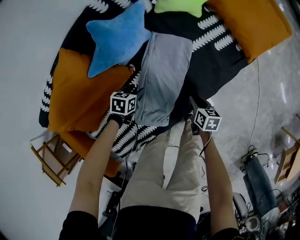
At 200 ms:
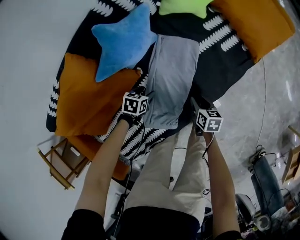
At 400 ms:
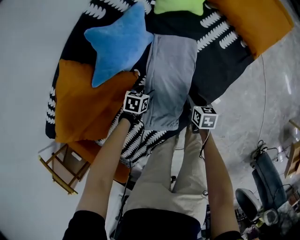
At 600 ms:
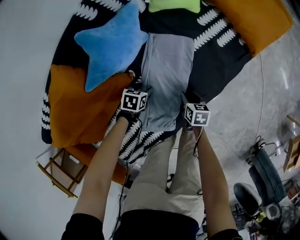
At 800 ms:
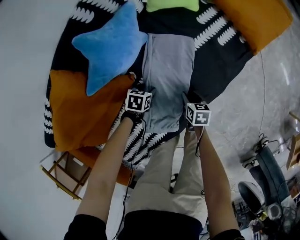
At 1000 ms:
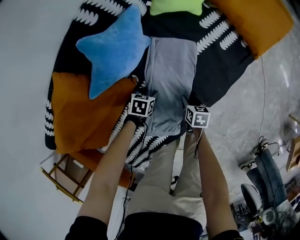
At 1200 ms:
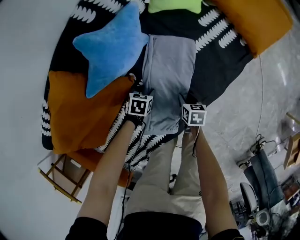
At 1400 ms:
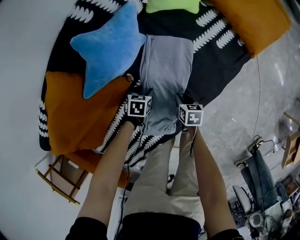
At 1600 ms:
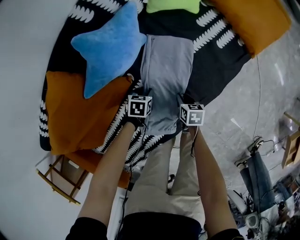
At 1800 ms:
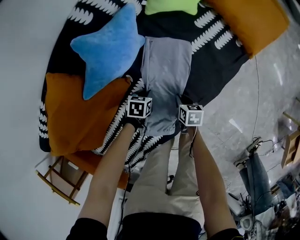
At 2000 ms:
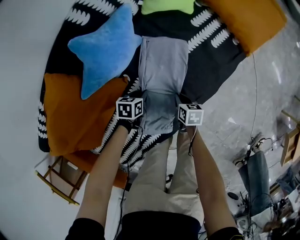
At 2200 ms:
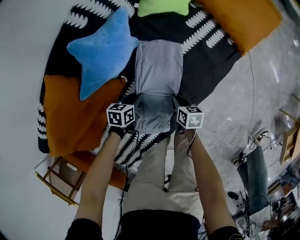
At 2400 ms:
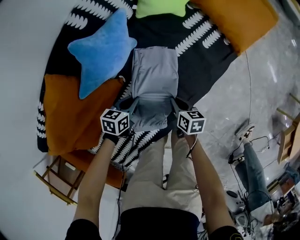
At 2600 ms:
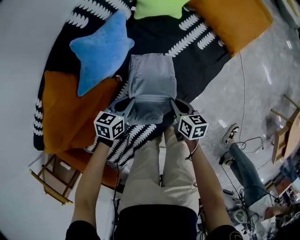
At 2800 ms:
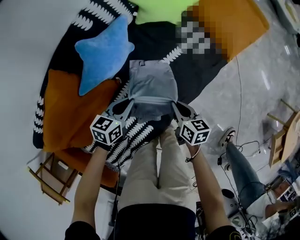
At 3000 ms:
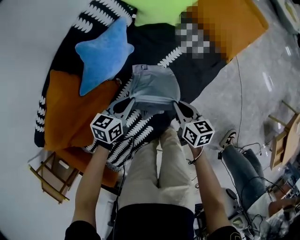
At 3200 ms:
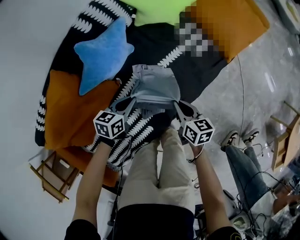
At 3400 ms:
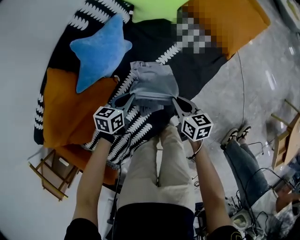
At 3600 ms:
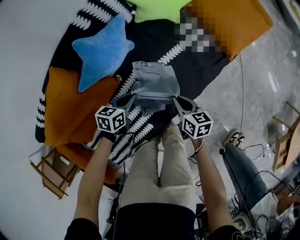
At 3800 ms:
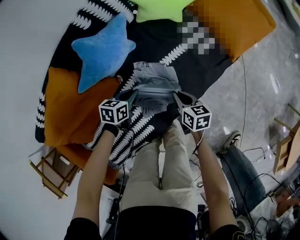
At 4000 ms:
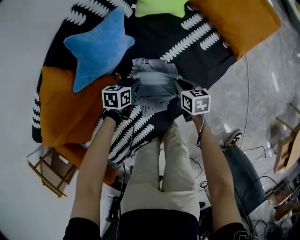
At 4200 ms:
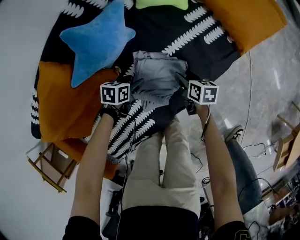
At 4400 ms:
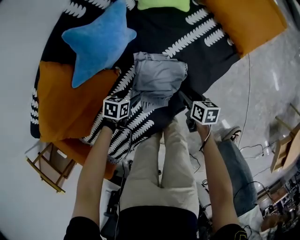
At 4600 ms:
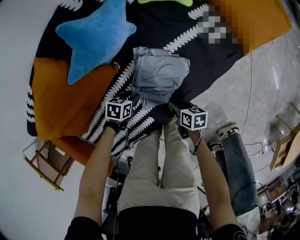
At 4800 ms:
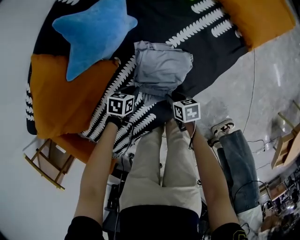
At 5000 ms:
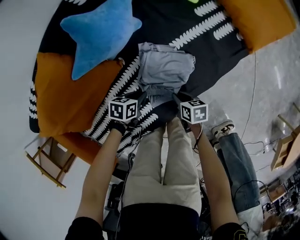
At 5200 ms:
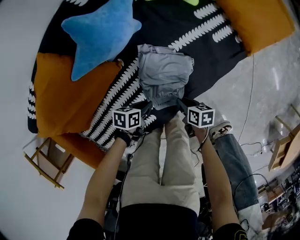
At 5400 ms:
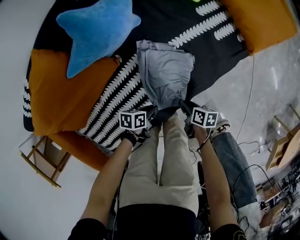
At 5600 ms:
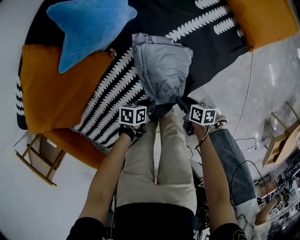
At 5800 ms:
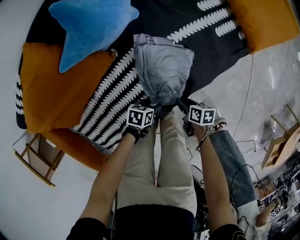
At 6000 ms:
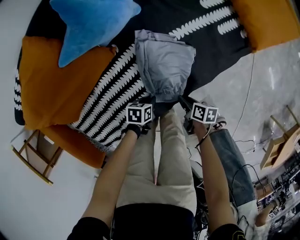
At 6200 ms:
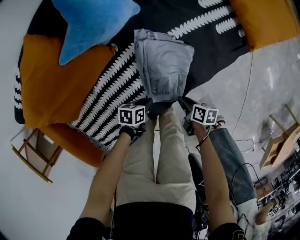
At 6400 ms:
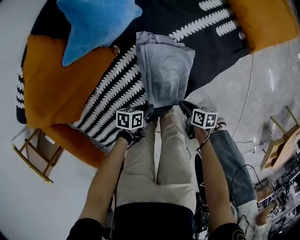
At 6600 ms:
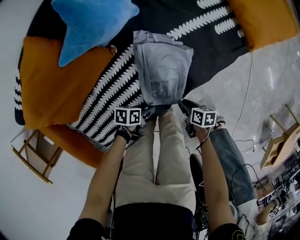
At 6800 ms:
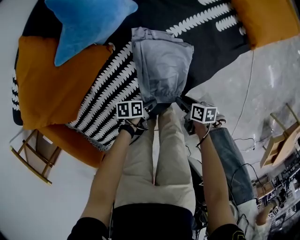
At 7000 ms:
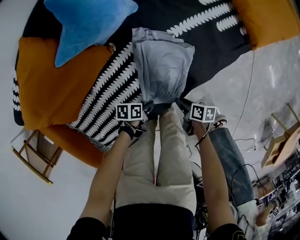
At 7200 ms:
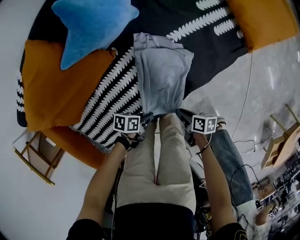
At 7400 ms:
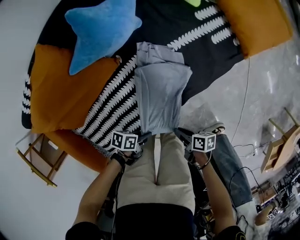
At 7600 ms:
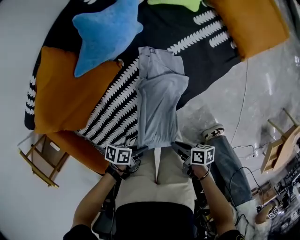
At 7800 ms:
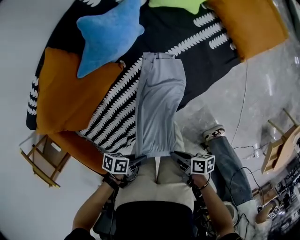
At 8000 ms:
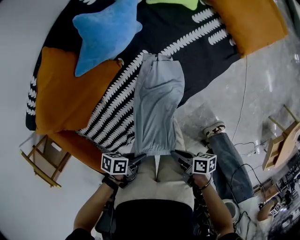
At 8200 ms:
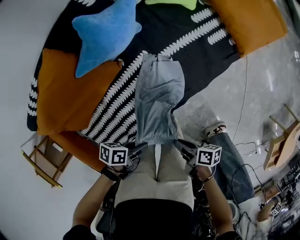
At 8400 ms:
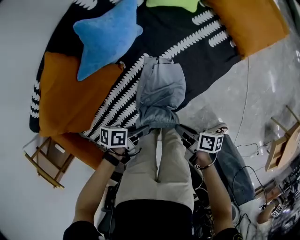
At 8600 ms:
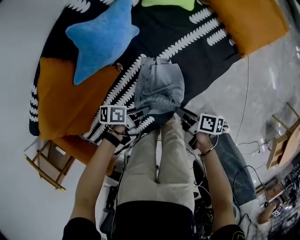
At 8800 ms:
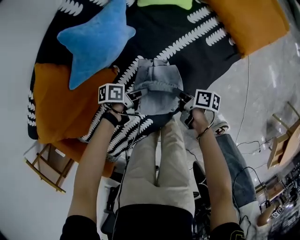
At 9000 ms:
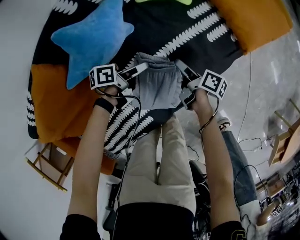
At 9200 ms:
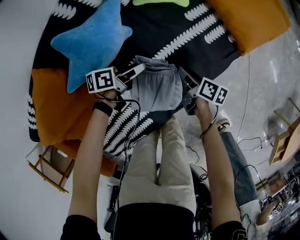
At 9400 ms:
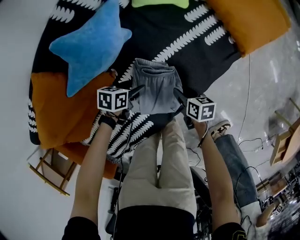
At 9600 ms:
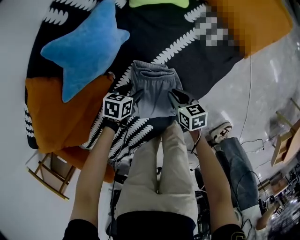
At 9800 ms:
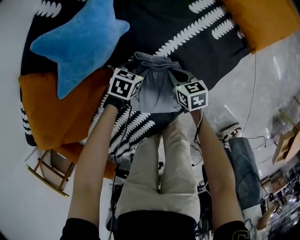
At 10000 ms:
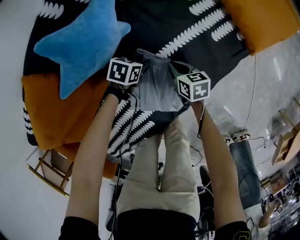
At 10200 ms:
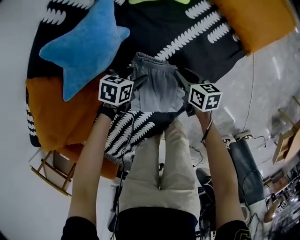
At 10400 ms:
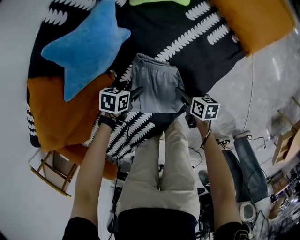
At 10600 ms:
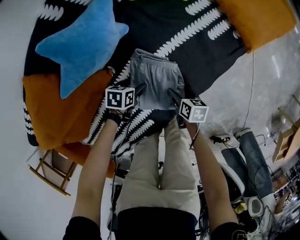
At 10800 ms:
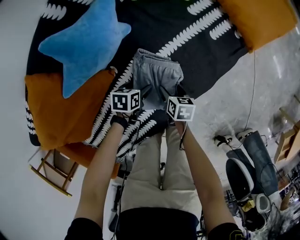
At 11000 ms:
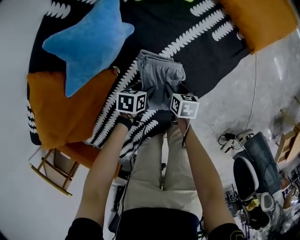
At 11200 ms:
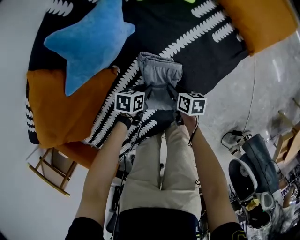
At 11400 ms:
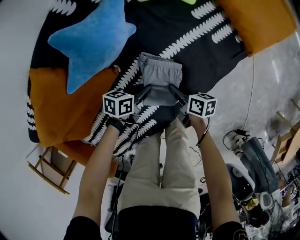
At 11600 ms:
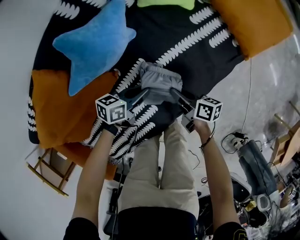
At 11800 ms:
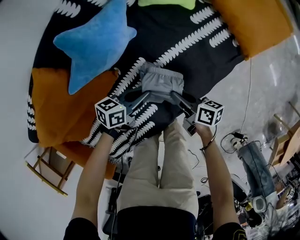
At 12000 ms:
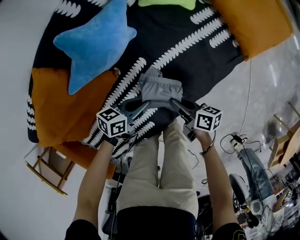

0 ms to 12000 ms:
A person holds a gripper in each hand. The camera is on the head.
0 ms to 1600 ms: The right gripper heads downward and to the left, covering about 10 cm. The left gripper shifts roughly 10 cm downward.
1600 ms to 3000 ms: Both grippers travel together upward, some 25 cm. The left gripper points its fingers some 30 degrees further upward. The right gripper turns by about 20 degrees.
3000 ms to 4400 ms: The grippers both shift downward by approximately 20 cm. The left gripper swivels roughly 30 degrees, and opens up; the right gripper opens up.
4400 ms to 6000 ms: The left gripper changes place by roughly 15 cm, and closes up, while the right gripper moves roughly 15 cm.
6000 ms to 7600 ms: Both grippers travel together upward, some 20 cm. The left gripper turns by roughly 30 degrees, and opens, then closes again, while the right gripper swivels some 20 degrees.
7600 ms to 9000 ms: The left gripper changes place by some 40 cm, turns by roughly 30 degrees, and opens its fingers, while the right gripper moves roughly 40 cm, swivels roughly 40 degrees, and opens up.
9000 ms to 10400 ms: The left gripper ends up about 10 cm from where it was, and points its fingers roughly 30 degrees further downward; the right gripper changes place by some 15 cm, changes its angle by about 40 degrees, and closes and opens again.
10400 ms to 12000 ms: The grippers both shift upward by about 10 cm. The right gripper changes its angle by approximately 30 degrees, and closes its fingers. Meanwhile the left gripper tilts its fingers some 30 degrees upward, and closes.

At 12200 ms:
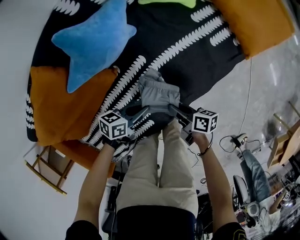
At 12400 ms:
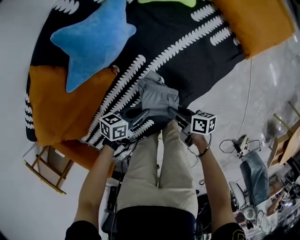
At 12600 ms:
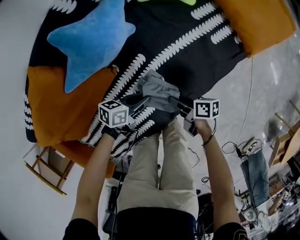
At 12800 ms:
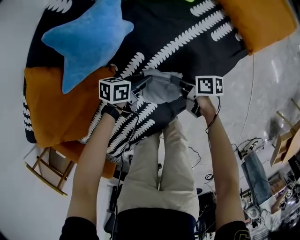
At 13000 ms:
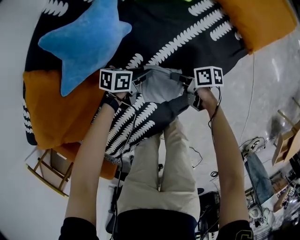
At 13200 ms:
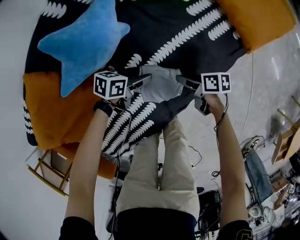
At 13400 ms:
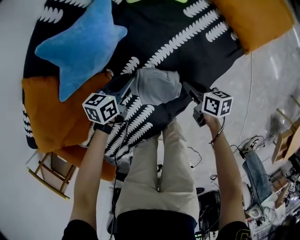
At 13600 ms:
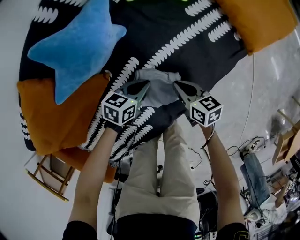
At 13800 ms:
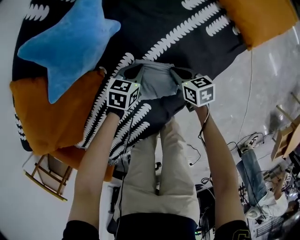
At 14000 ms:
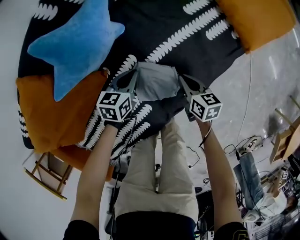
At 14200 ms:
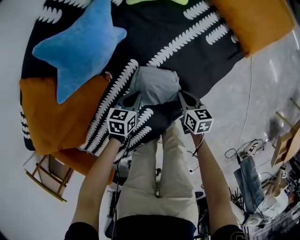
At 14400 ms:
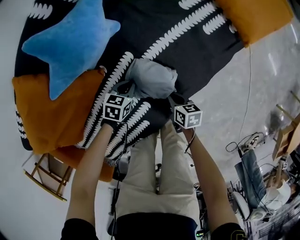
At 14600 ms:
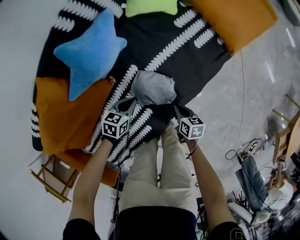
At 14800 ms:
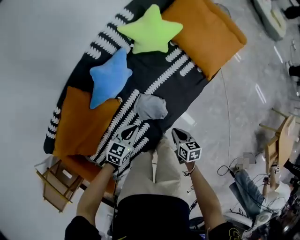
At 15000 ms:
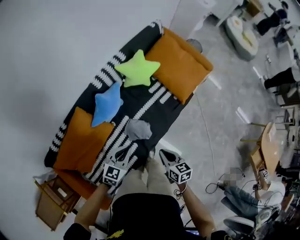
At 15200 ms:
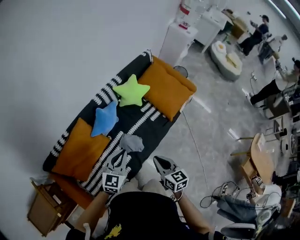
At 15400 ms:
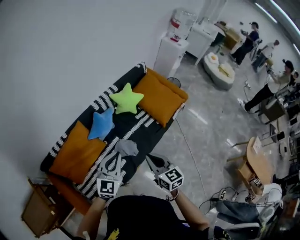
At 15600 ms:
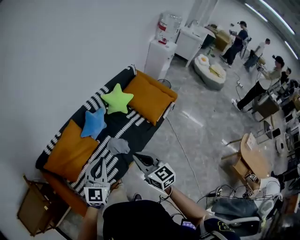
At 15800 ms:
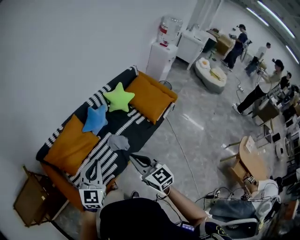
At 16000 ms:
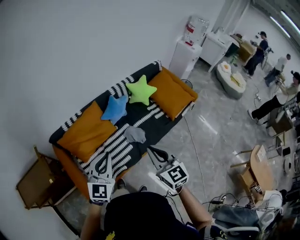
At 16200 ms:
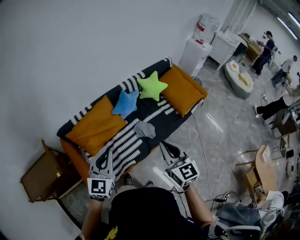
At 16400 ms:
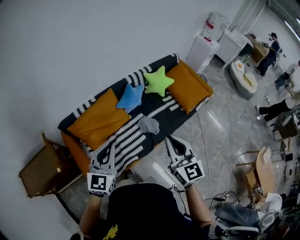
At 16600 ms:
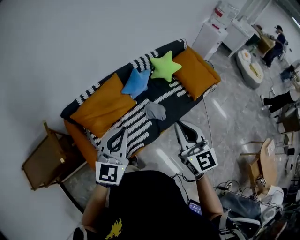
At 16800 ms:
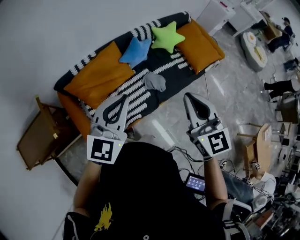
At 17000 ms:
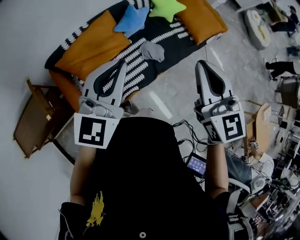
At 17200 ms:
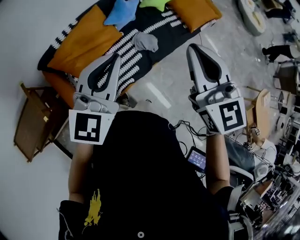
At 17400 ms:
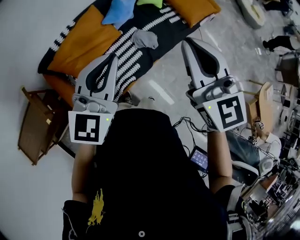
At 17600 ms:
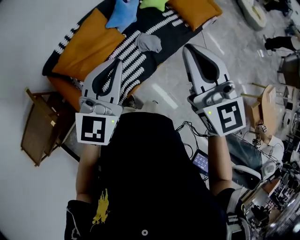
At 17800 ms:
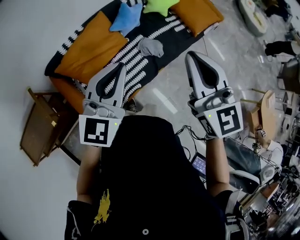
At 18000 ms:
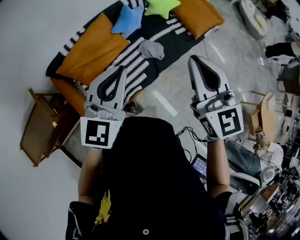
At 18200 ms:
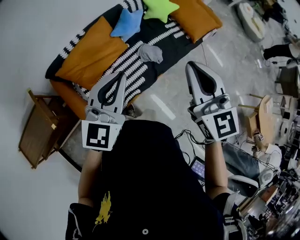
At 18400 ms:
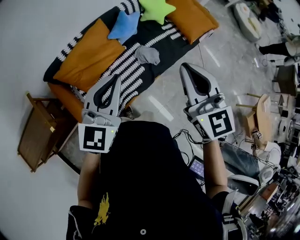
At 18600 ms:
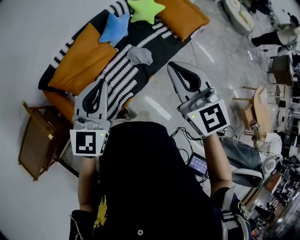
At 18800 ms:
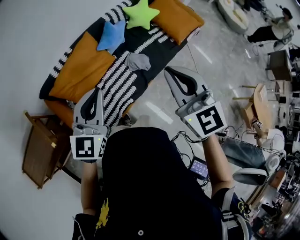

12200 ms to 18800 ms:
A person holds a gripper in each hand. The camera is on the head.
12200 ms to 13800 ms: The left gripper moves up and down over about 10 cm, changing direction 2 times, rotates roughly 30 degrees, and opens, then closes again. The right gripper swings up and down, some 10 cm each way, with 2 reversals, swivels some 40 degrees, and opens, then closes again.
13800 ms to 15400 ms: The right gripper moves up and down over some 80 cm, changing direction 2 times, and turns by roughly 50 degrees; the left gripper goes up and down, some 80 cm each way, reversing 2 times, and angles its fingers upward, by roughly 50 degrees.
15400 ms to 17200 ms: The right gripper moves to the left, upward and backward, approximately 20 cm, and rotates approximately 20 degrees, while the left gripper is displaced to the left and backward by about 20 cm.
17200 ms to 18800 ms: The left gripper shifts approximately 5 cm to the left.

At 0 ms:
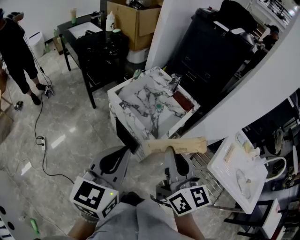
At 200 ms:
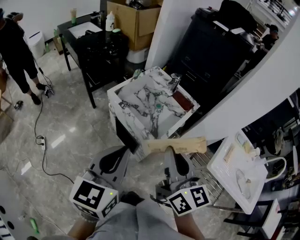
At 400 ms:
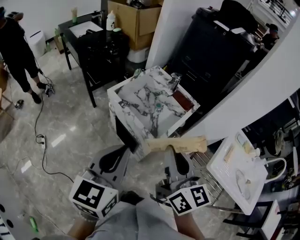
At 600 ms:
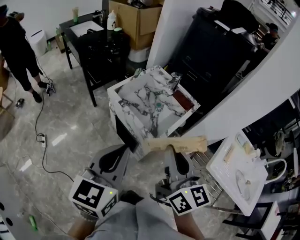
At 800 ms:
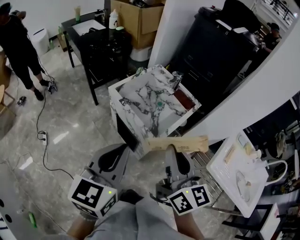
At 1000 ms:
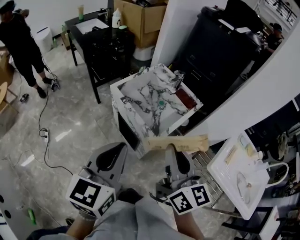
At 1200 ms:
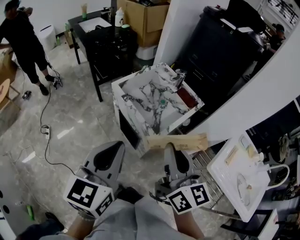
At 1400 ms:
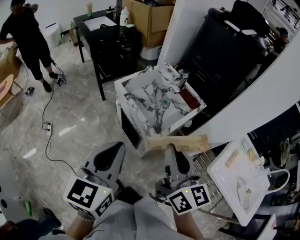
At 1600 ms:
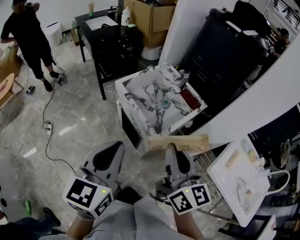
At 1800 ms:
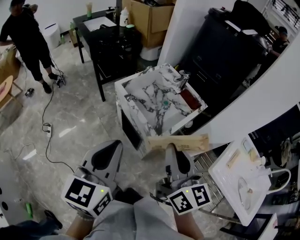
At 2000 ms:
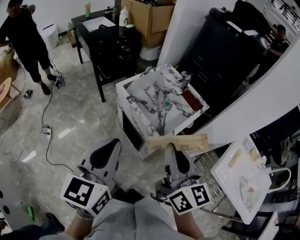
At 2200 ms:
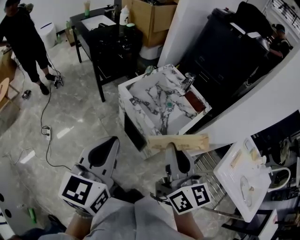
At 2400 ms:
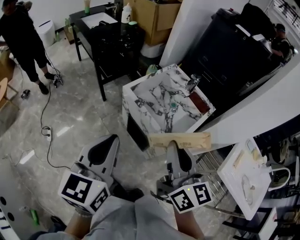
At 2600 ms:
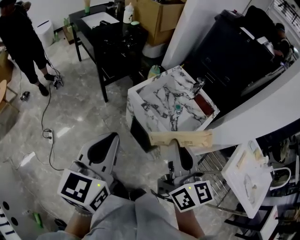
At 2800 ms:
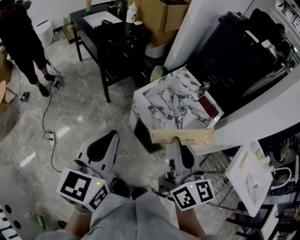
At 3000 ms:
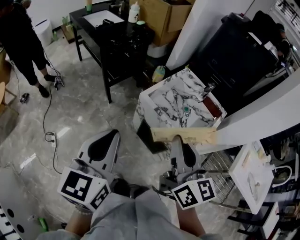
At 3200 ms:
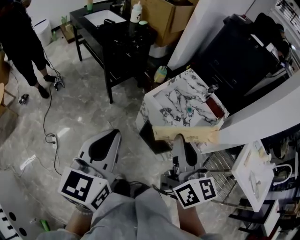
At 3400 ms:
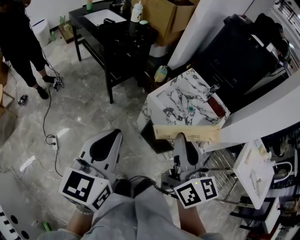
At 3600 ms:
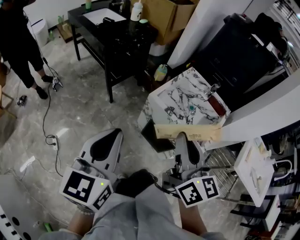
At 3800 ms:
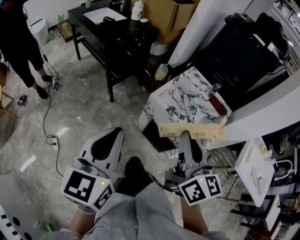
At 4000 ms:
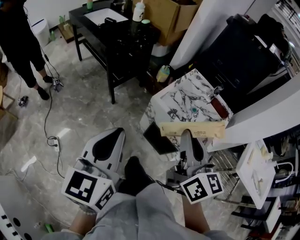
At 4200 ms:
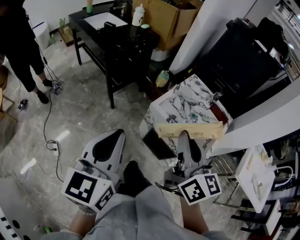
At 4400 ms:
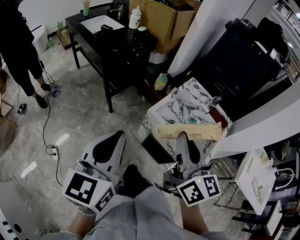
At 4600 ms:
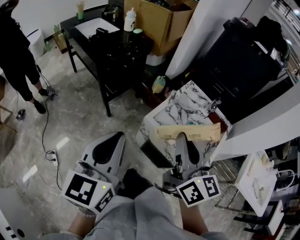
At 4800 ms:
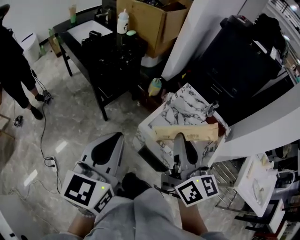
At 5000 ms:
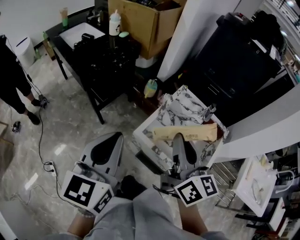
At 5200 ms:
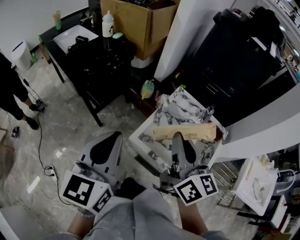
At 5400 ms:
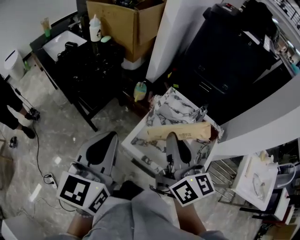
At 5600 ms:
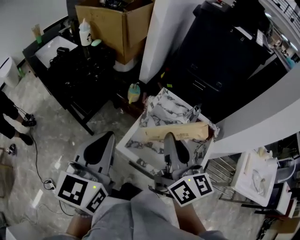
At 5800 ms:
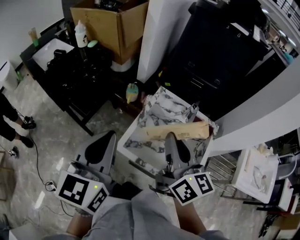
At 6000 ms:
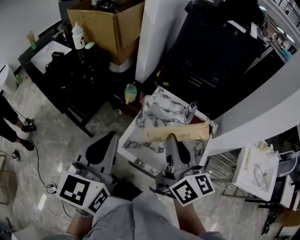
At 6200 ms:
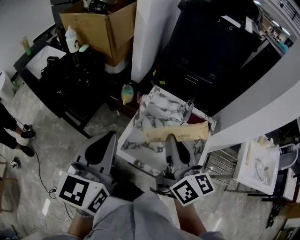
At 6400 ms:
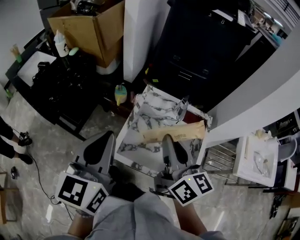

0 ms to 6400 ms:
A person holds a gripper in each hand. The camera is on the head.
0 ms to 1600 ms: The grippers stay close to where they were, moving slightly.
1600 ms to 3200 ms: Both grippers travel together to the left and forward, some 30 cm.
3200 ms to 4800 ms: Both grippers travel together forward, roughly 20 cm.
4800 ms to 6400 ms: Both grippers travel together forward and to the right, about 20 cm.
